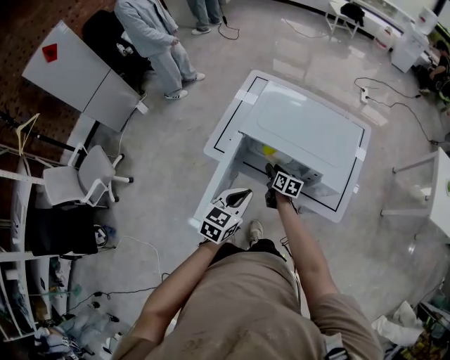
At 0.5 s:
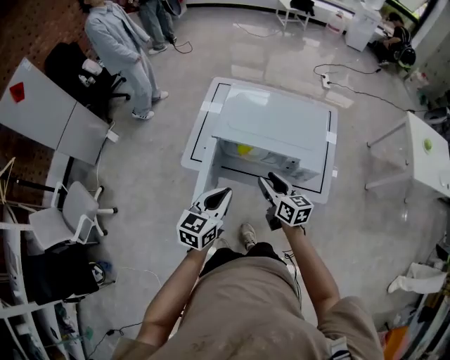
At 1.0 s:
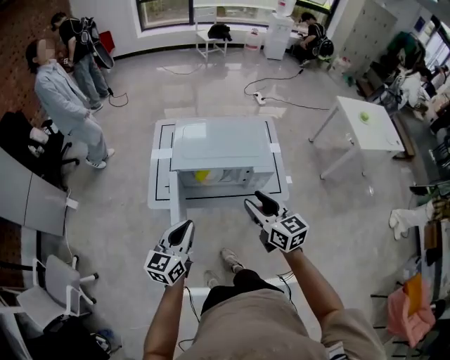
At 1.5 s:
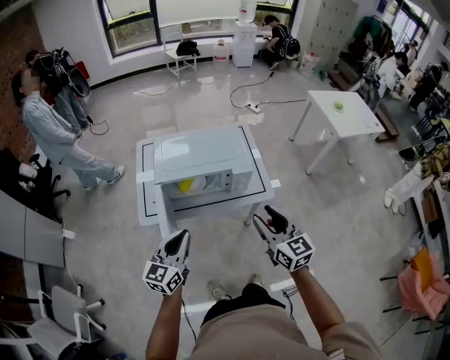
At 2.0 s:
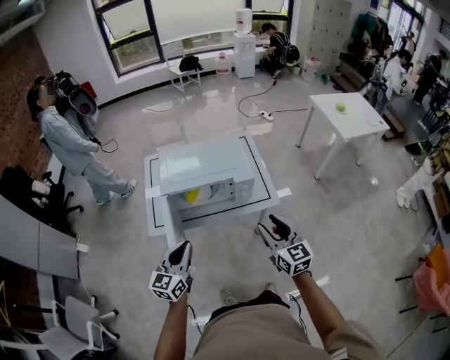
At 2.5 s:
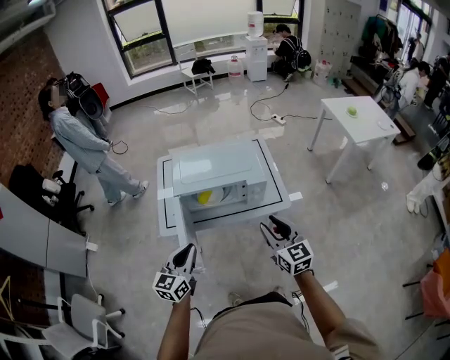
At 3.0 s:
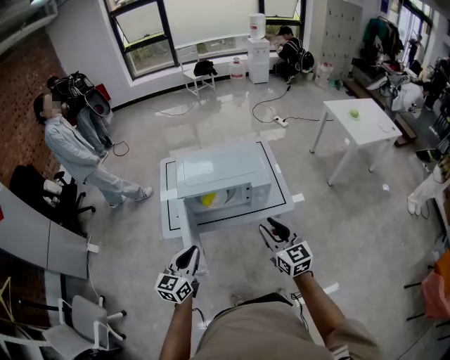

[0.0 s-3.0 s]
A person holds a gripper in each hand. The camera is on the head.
0.0 to 1.5 s: The left gripper shifts some 10 cm upward, and changes its angle by about 30 degrees. The right gripper goes approximately 35 cm upward, and rotates some 50 degrees.
1.5 to 3.0 s: The left gripper shifts by roughly 5 cm.

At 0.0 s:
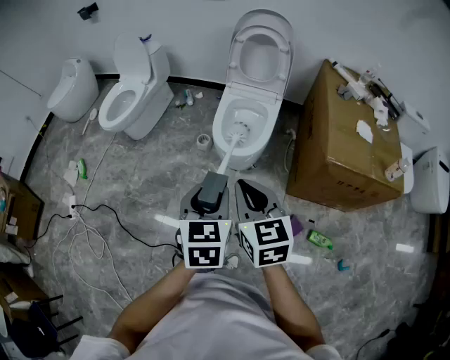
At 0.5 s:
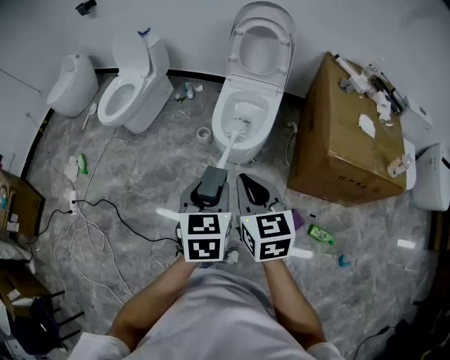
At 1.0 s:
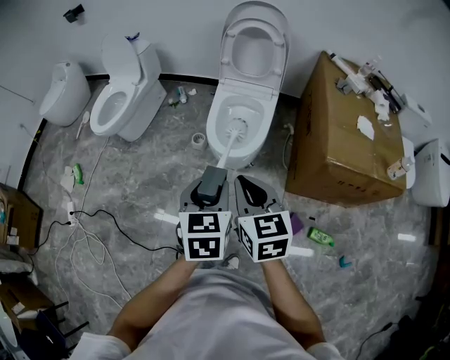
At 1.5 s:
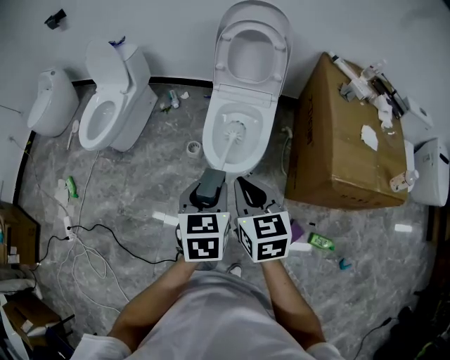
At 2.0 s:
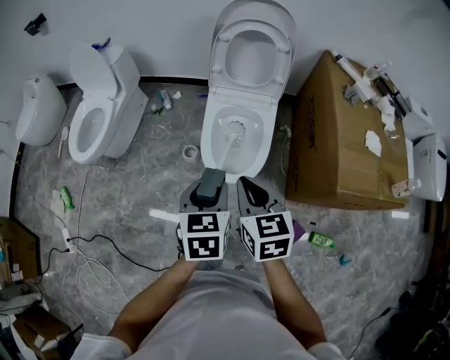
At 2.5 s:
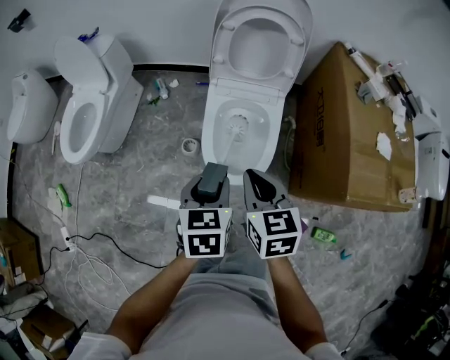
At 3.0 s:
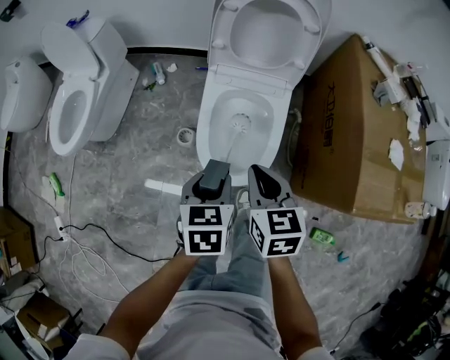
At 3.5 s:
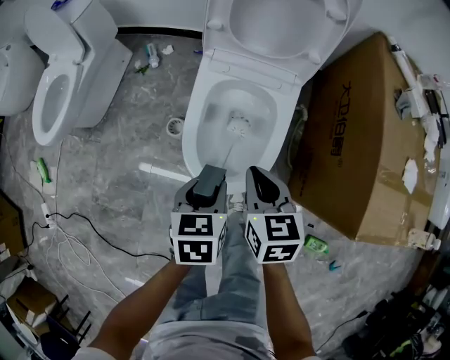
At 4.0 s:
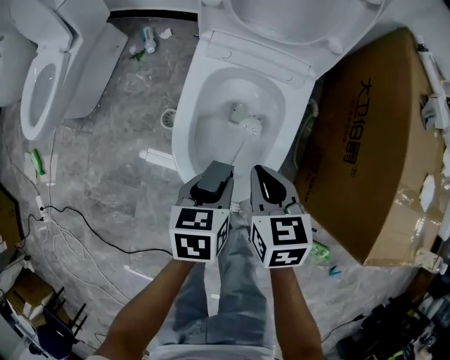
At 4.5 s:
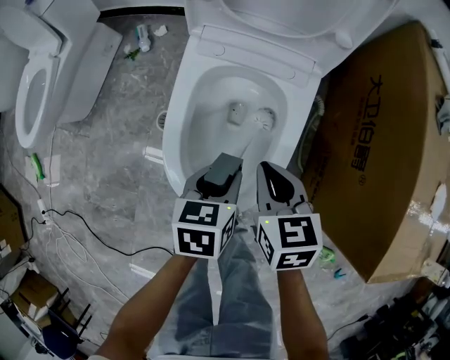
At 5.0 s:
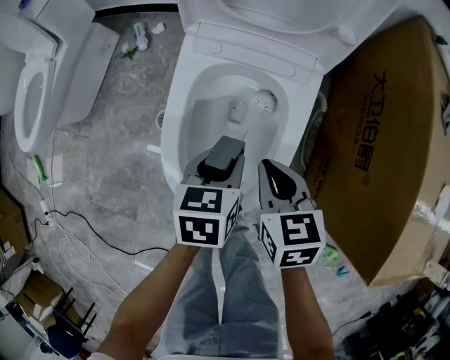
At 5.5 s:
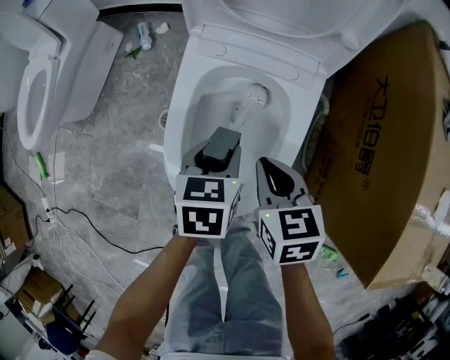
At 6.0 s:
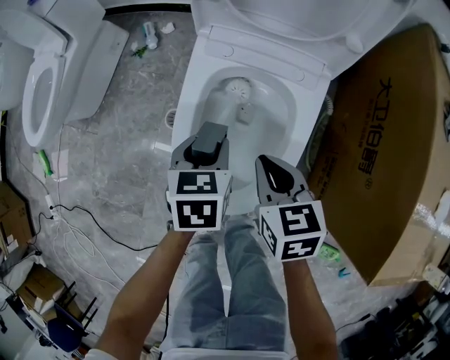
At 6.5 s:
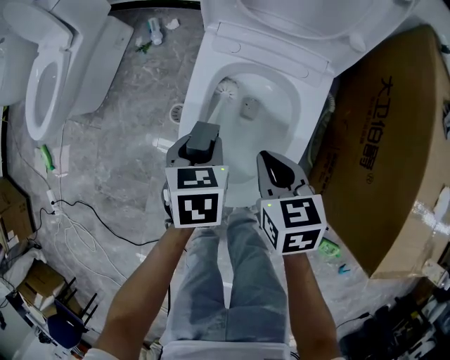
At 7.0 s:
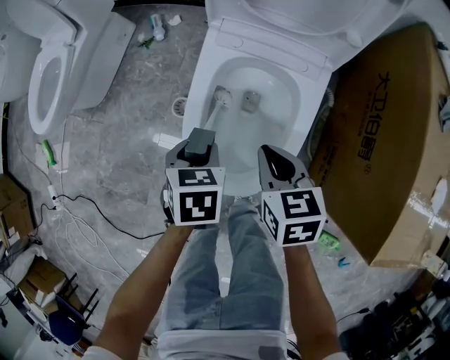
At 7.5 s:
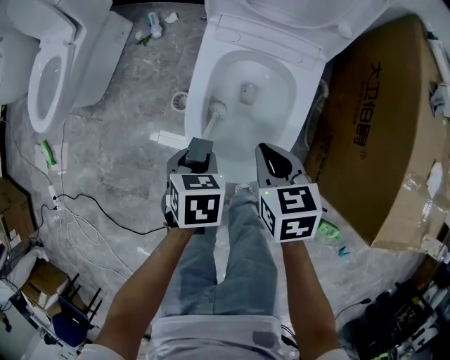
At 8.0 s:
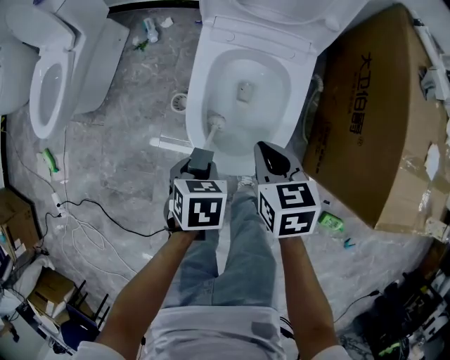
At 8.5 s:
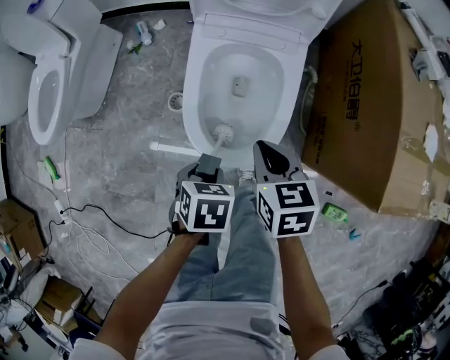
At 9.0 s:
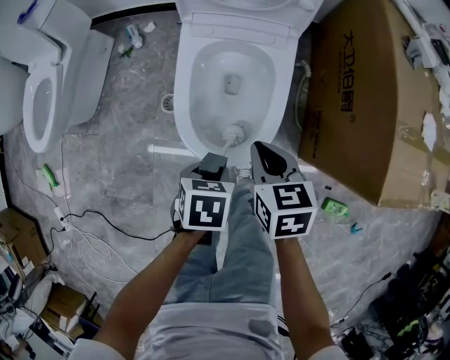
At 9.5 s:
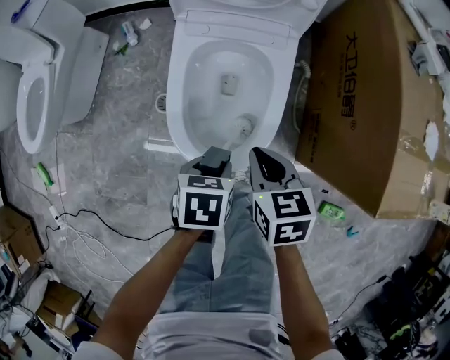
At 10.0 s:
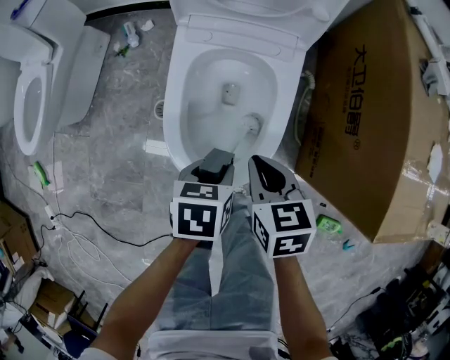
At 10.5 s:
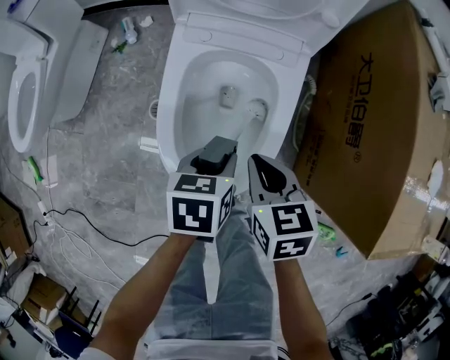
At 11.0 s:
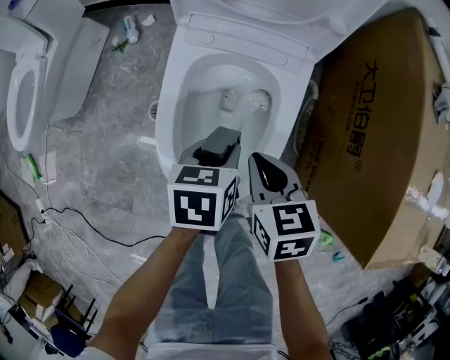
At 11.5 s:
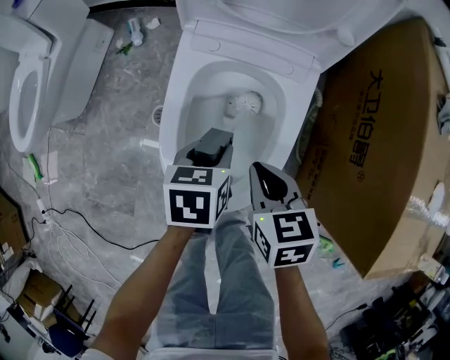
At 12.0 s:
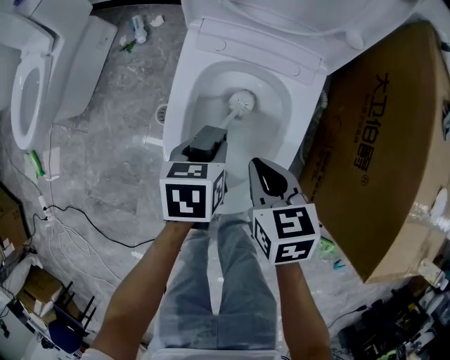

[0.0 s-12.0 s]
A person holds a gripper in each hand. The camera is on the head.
0.0 to 2.0 s: The grippers both shift forward by approximately 25 cm.
2.0 to 4.0 s: Both grippers move downward and forward, some 35 cm. The left gripper swivels some 20 degrees.
4.0 to 6.0 s: The right gripper travels forward by about 5 cm; the left gripper is displaced forward by roughly 10 cm.
6.0 to 8.0 s: The right gripper is displaced upward and backward by about 10 cm. Meanwhile the left gripper heads backward and to the left, covering roughly 15 cm.
8.0 to 10.0 s: The left gripper changes place by approximately 10 cm. The right gripper moves some 5 cm.
10.0 to 12.0 s: The right gripper is displaced forward by approximately 5 cm. Meanwhile the left gripper is displaced forward by some 10 cm.

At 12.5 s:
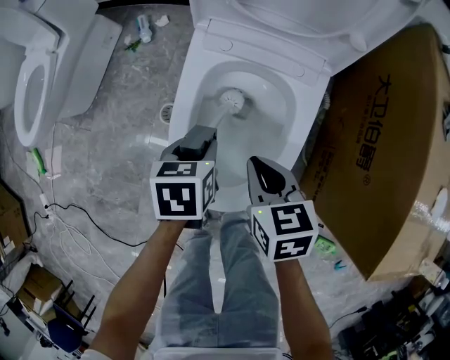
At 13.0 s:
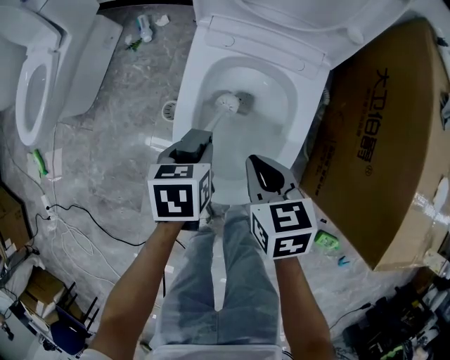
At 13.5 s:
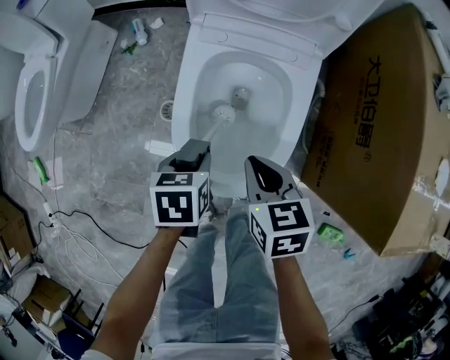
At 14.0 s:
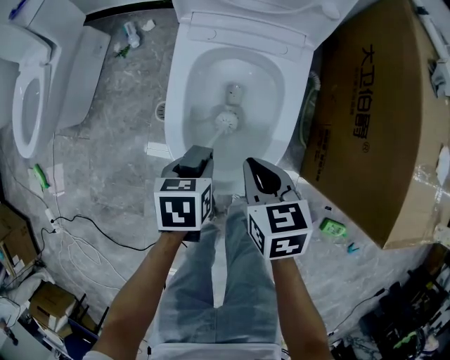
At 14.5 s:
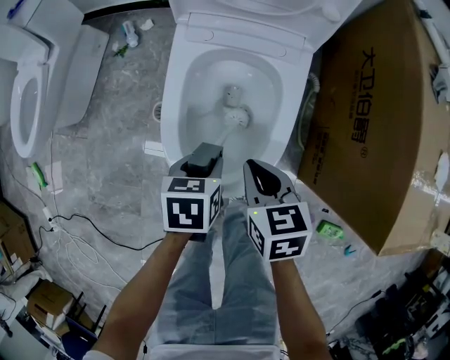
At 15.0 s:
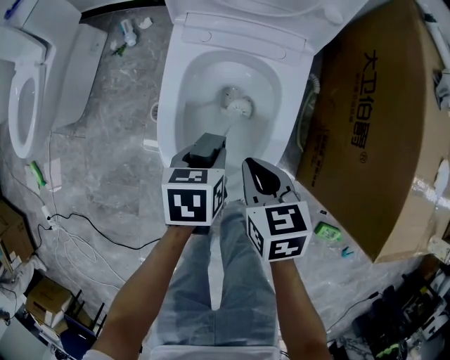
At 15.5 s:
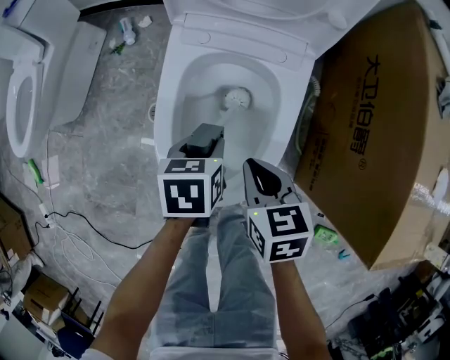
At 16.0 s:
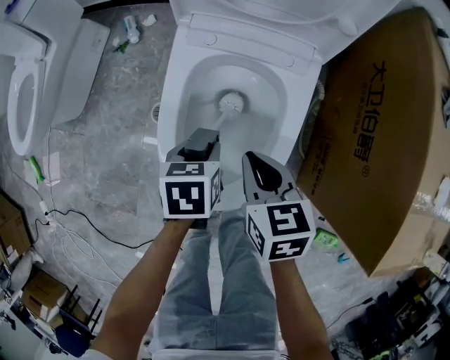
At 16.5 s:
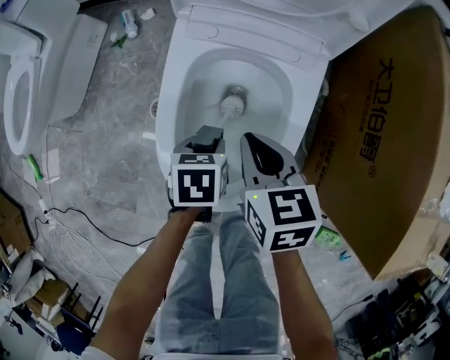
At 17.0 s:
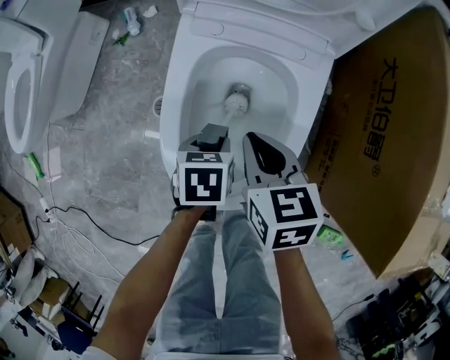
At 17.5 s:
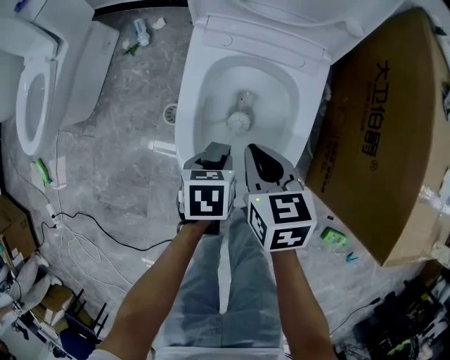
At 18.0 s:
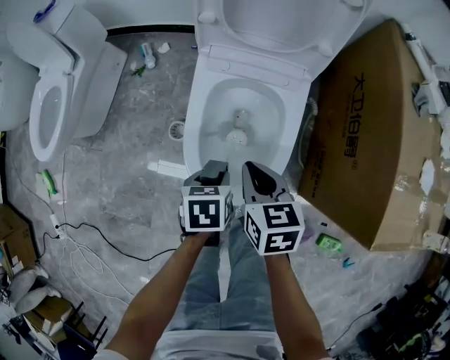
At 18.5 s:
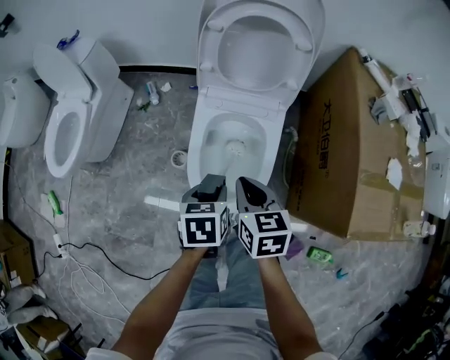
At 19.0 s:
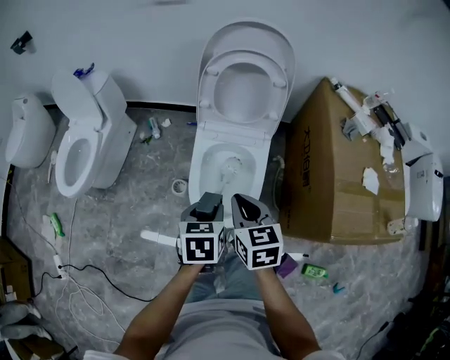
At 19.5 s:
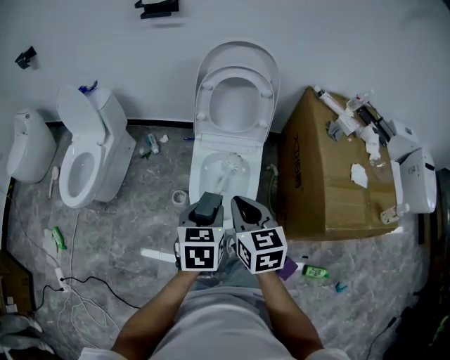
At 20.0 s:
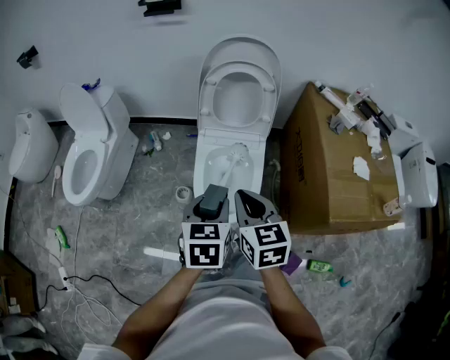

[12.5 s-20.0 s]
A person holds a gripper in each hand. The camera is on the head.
12.5 to 14.5 s: Both grippers travel together backward, about 5 cm.
14.5 to 16.5 s: The left gripper is displaced downward and forward by approximately 10 cm; the right gripper shifts about 10 cm forward.
16.5 to 18.0 s: Both grippers move upward and backward, approximately 10 cm.
18.0 to 20.0 s: The left gripper travels upward by approximately 35 cm, and rotates approximately 30 degrees; the right gripper goes some 35 cm upward and backward, and swivels about 20 degrees.

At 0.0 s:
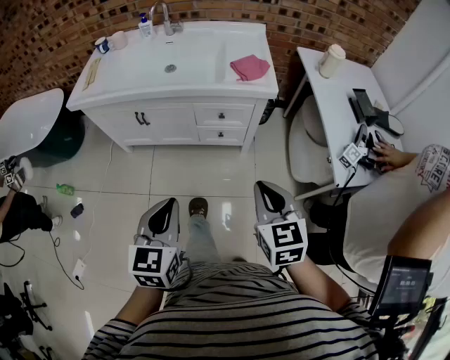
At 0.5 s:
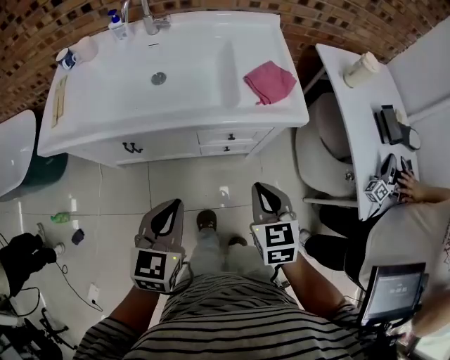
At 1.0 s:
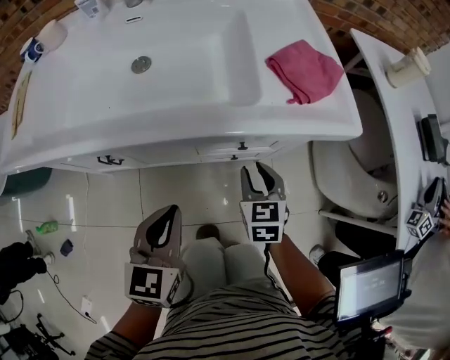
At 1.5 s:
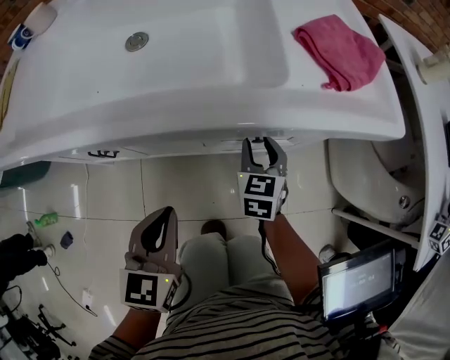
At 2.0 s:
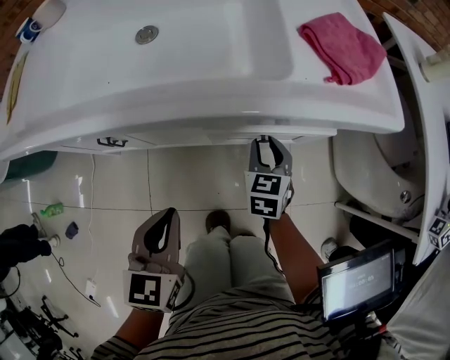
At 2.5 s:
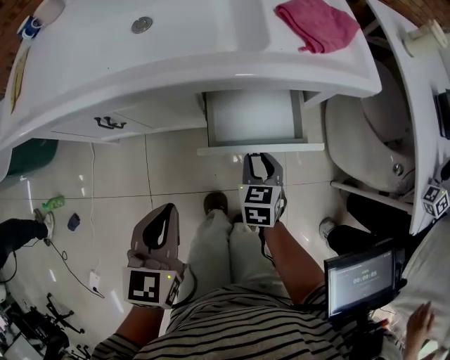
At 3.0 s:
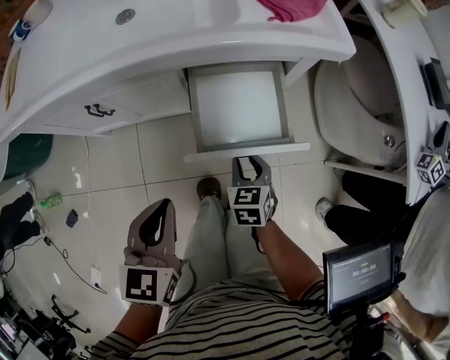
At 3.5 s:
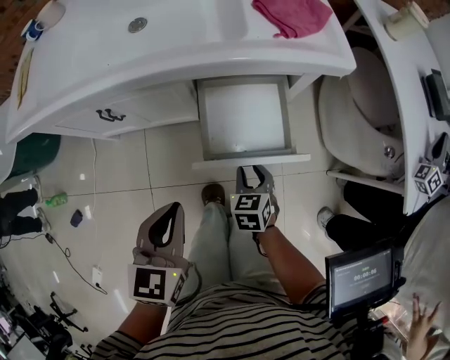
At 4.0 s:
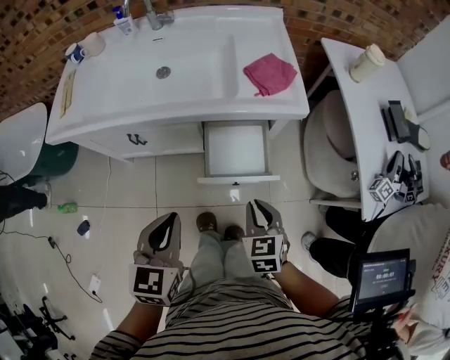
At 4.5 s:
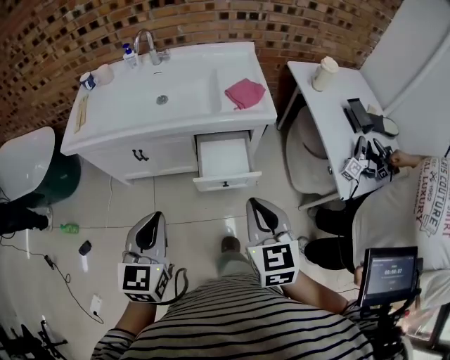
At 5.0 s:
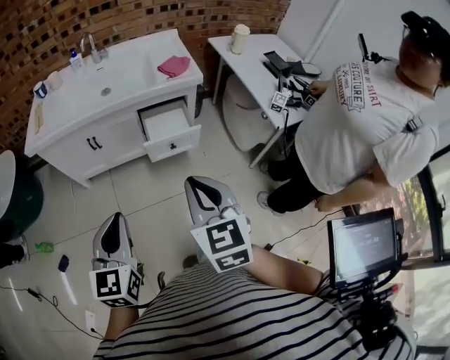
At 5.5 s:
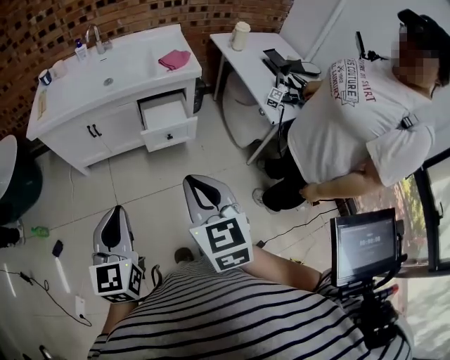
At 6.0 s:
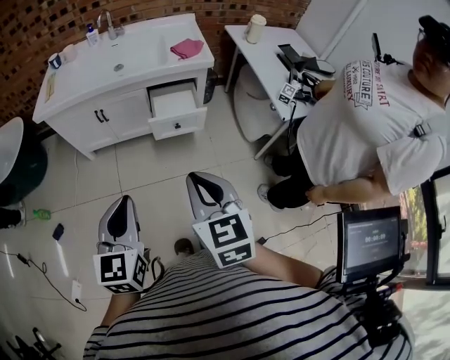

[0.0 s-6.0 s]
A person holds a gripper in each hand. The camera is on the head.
0.0 to 2.0 s: The right gripper is displaced downward and forward by approximately 50 cm, and opens. Meanwhile the left gripper is displaced forward, downward and to the left by roughly 40 cm.
2.0 to 4.0 s: The left gripper goes about 25 cm upward and backward, while the right gripper travels backward and upward by approximately 35 cm.
4.0 to 6.0 s: Both grippers travel together backward and upward, about 40 cm. The right gripper changes its angle by some 20 degrees.
